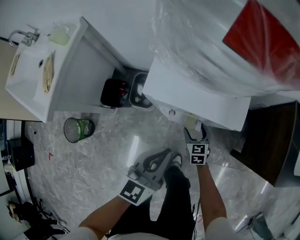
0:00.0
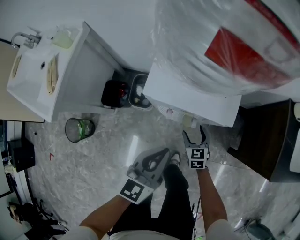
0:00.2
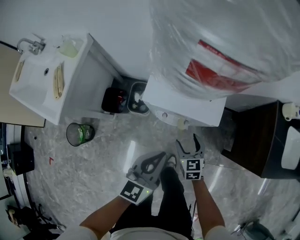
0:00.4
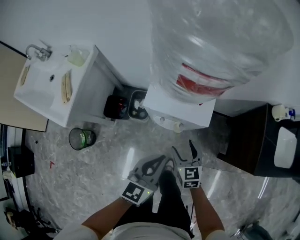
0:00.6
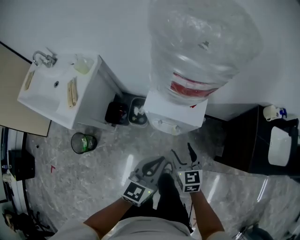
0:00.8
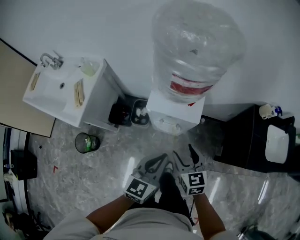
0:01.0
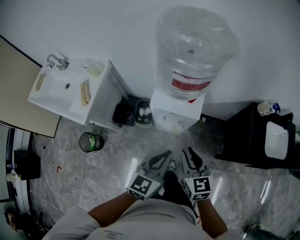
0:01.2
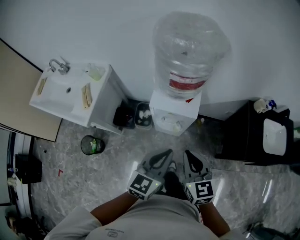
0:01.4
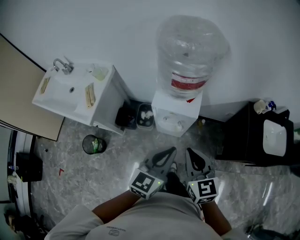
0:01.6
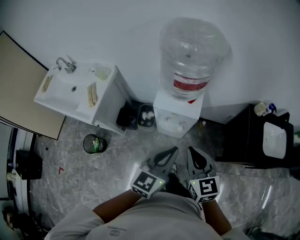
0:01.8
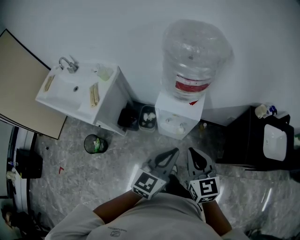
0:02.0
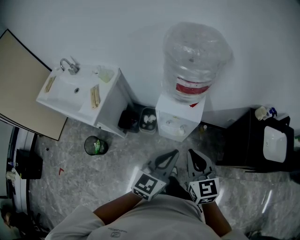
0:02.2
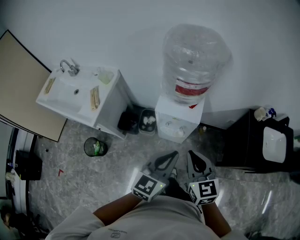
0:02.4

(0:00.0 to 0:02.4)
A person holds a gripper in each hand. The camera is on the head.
0:00.0 - 0:01.2: The right gripper goes approximately 50 cm upward, and closes up. The left gripper shifts approximately 25 cm upward.
0:01.2 - 0:02.4: The grippers both shift upward by roughly 10 cm.

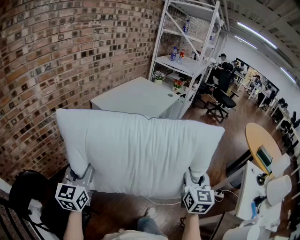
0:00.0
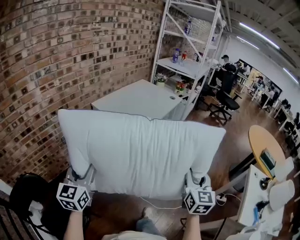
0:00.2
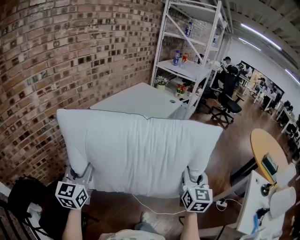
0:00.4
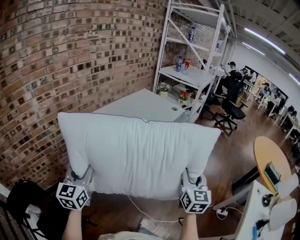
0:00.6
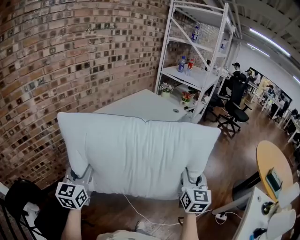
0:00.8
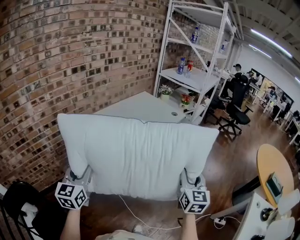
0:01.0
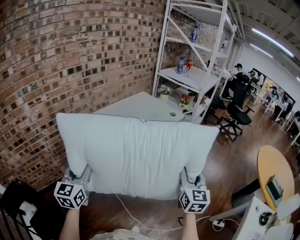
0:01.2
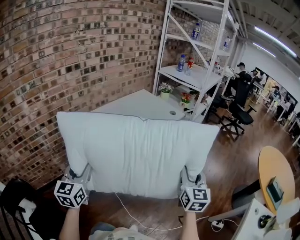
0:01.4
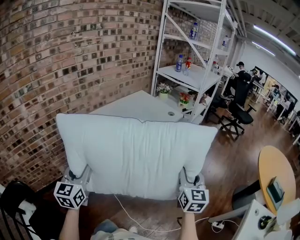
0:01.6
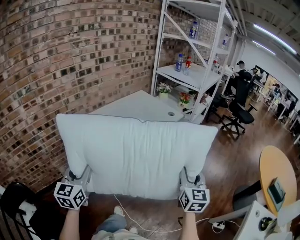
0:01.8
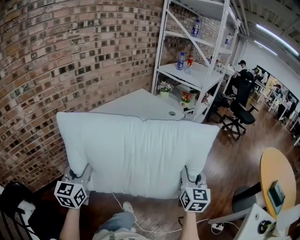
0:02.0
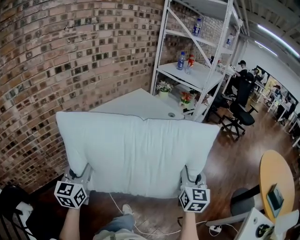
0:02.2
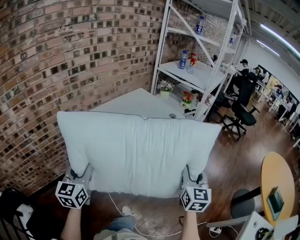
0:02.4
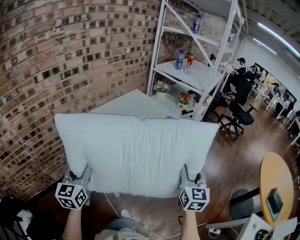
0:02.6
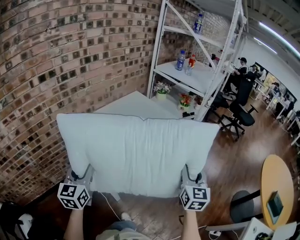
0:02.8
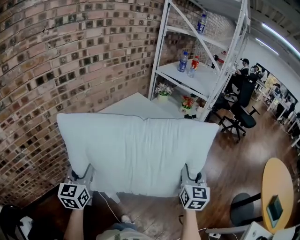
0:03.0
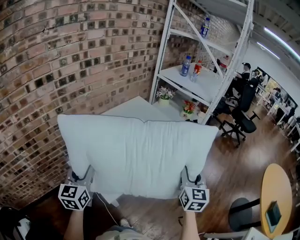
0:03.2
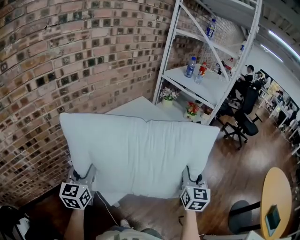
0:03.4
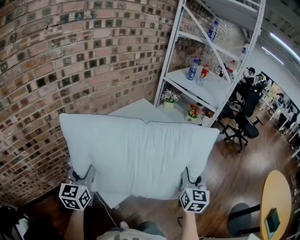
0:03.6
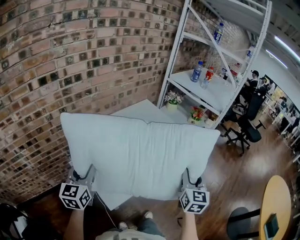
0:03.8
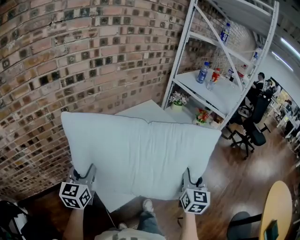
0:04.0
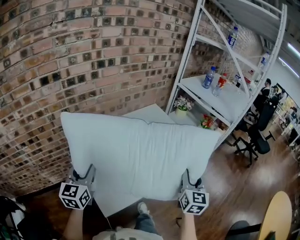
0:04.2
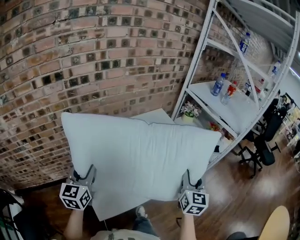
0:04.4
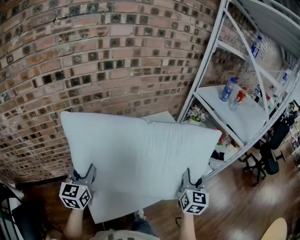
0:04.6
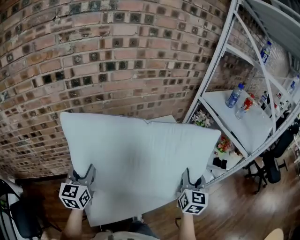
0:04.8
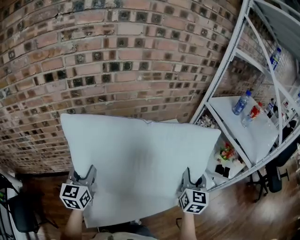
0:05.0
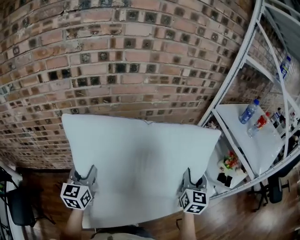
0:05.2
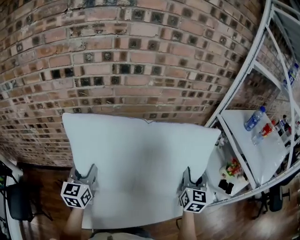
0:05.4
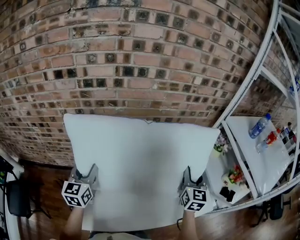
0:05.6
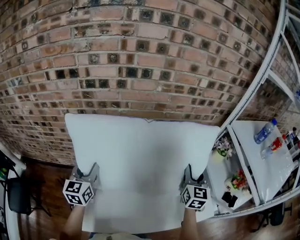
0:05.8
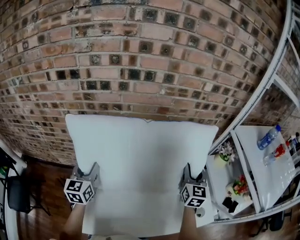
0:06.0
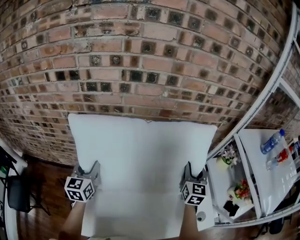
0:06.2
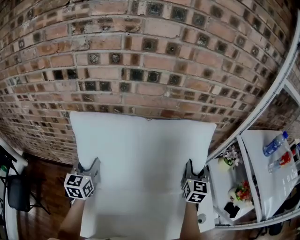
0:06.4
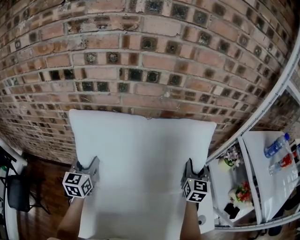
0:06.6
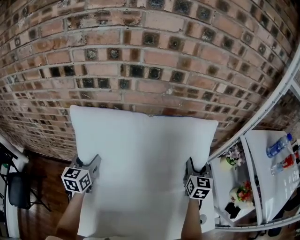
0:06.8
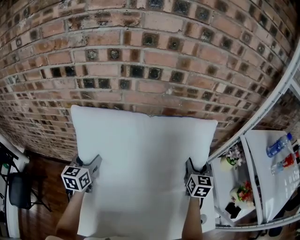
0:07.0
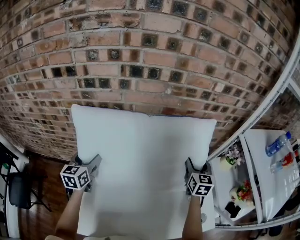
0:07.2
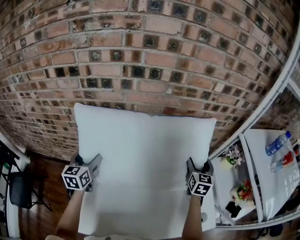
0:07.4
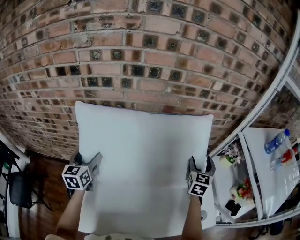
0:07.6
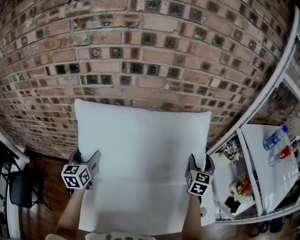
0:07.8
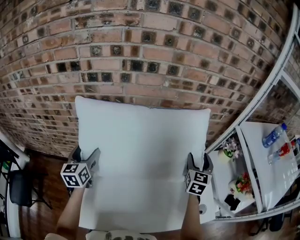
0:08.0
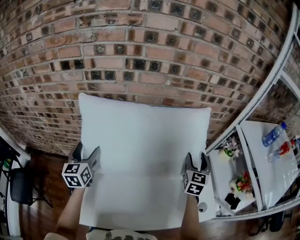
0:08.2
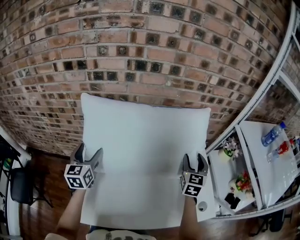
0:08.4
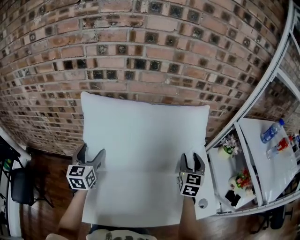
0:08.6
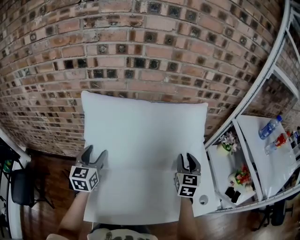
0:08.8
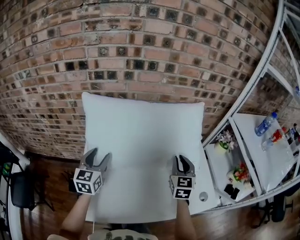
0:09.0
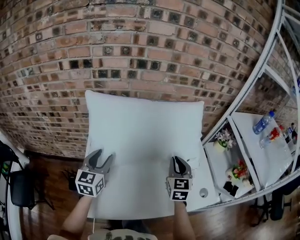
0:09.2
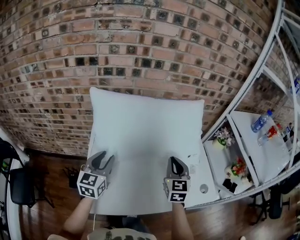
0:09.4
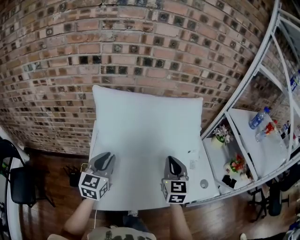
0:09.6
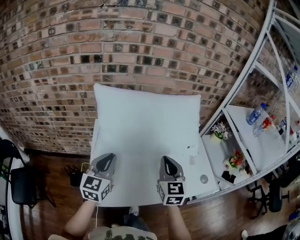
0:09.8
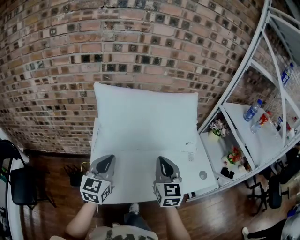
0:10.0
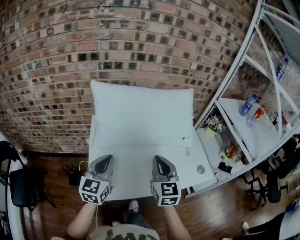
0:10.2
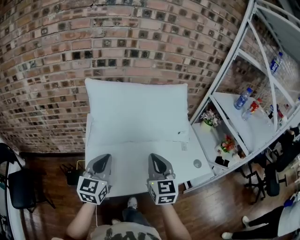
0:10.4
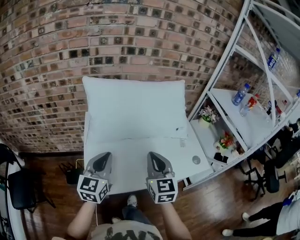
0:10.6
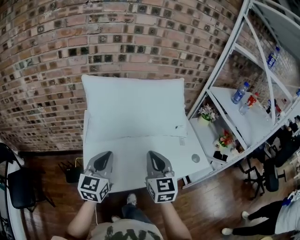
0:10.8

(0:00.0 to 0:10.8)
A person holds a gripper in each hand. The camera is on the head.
0:00.0 - 0:01.6: Both grippers travel together forward and to the right, about 30 cm.
0:01.6 - 0:03.0: Both grippers move forward, roughly 25 cm.
0:03.0 - 0:04.6: The left gripper shifts approximately 15 cm forward. The right gripper moves forward, roughly 30 cm.
0:04.6 - 0:06.2: The right gripper travels forward by about 30 cm, and turns by some 20 degrees; the left gripper travels forward and downward by approximately 15 cm, and rotates some 20 degrees.
0:06.2 - 0:07.8: The left gripper opens up. The right gripper opens up.
0:07.8 - 0:09.2: The right gripper goes approximately 20 cm backward and to the left, and closes, while the left gripper travels backward and to the right by roughly 10 cm, and closes its fingers.
0:09.2 - 0:10.8: The left gripper is displaced backward by approximately 15 cm, and closes; the right gripper goes roughly 20 cm backward and to the left.

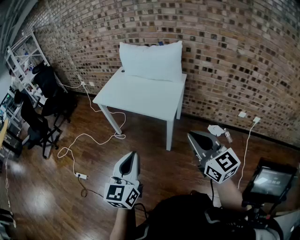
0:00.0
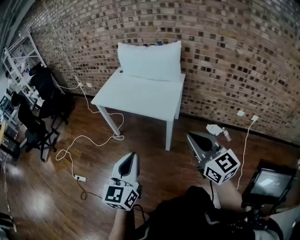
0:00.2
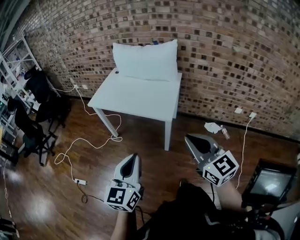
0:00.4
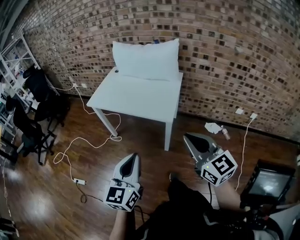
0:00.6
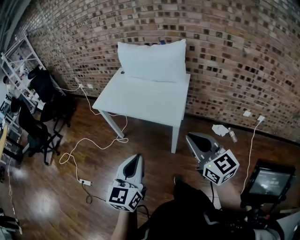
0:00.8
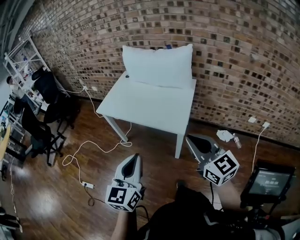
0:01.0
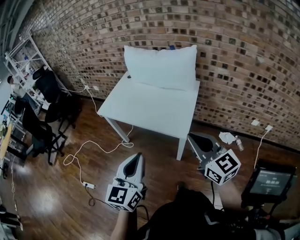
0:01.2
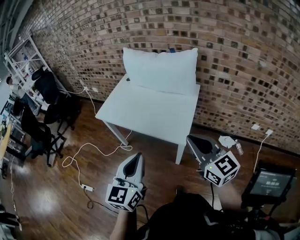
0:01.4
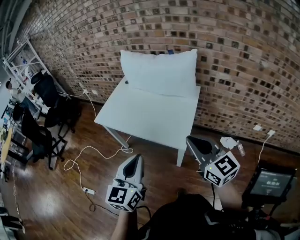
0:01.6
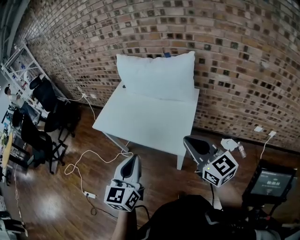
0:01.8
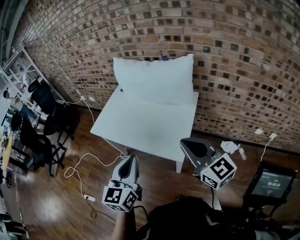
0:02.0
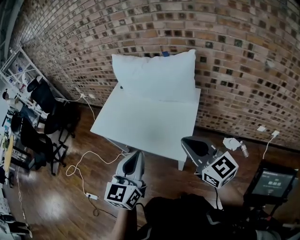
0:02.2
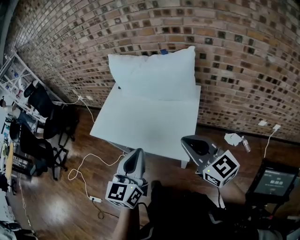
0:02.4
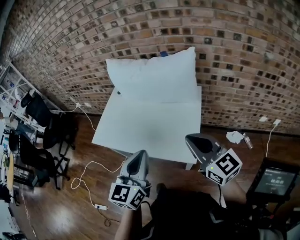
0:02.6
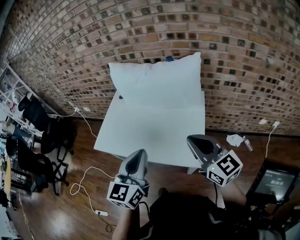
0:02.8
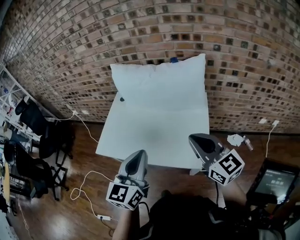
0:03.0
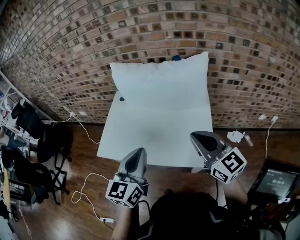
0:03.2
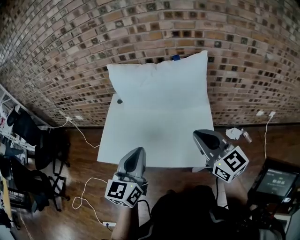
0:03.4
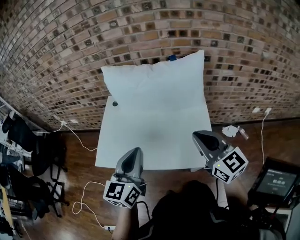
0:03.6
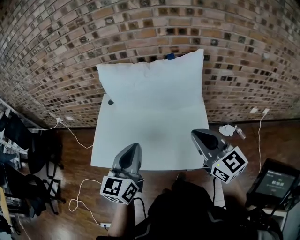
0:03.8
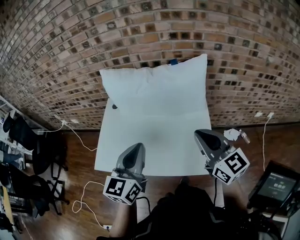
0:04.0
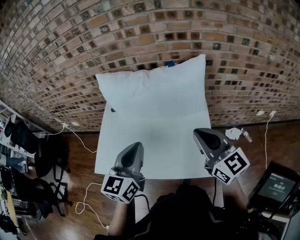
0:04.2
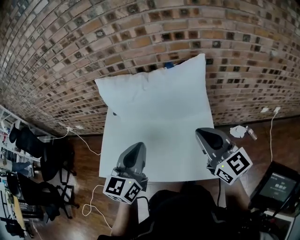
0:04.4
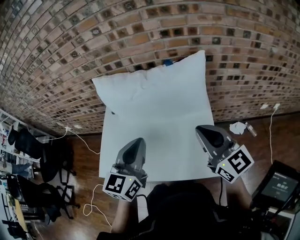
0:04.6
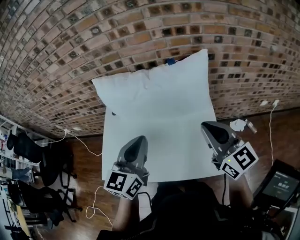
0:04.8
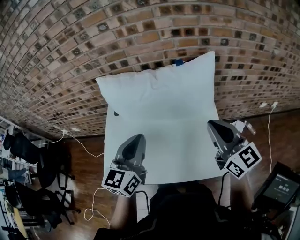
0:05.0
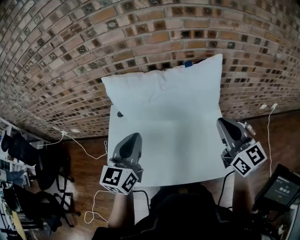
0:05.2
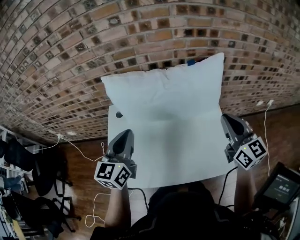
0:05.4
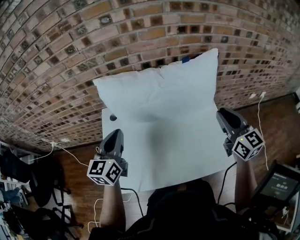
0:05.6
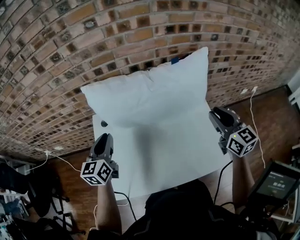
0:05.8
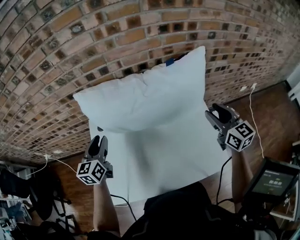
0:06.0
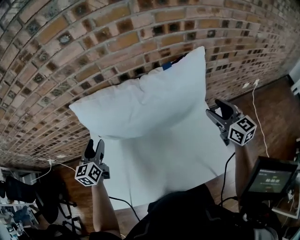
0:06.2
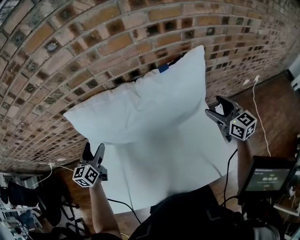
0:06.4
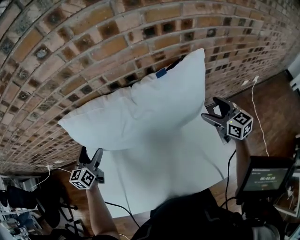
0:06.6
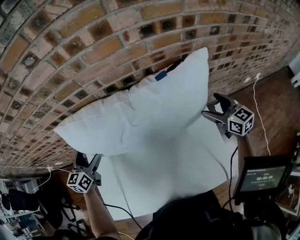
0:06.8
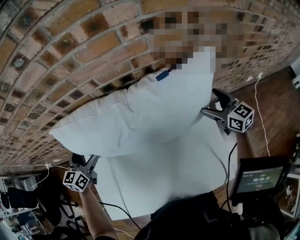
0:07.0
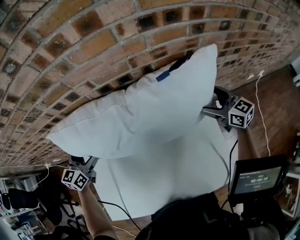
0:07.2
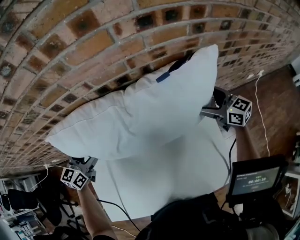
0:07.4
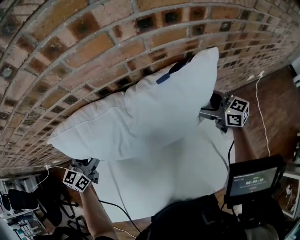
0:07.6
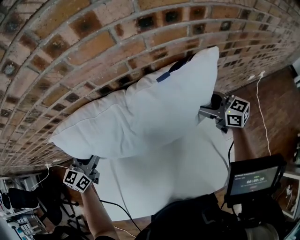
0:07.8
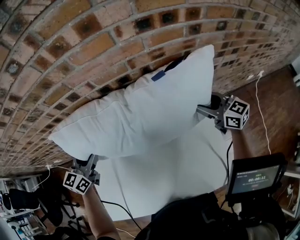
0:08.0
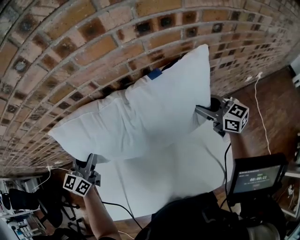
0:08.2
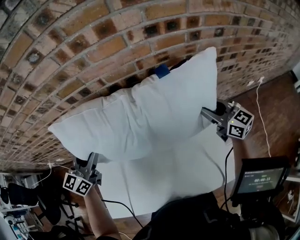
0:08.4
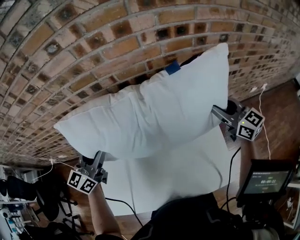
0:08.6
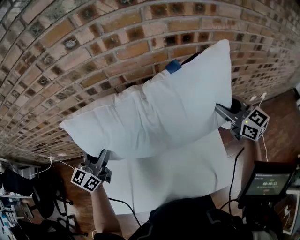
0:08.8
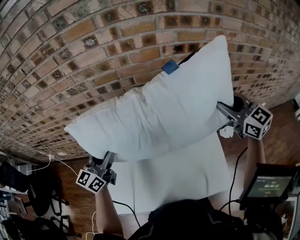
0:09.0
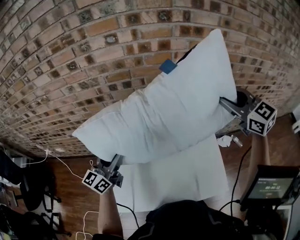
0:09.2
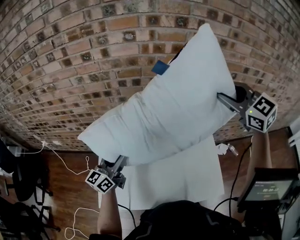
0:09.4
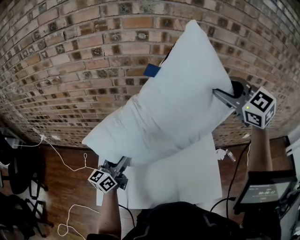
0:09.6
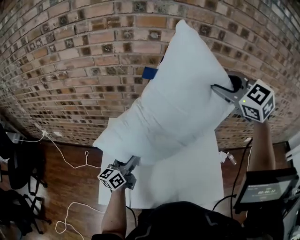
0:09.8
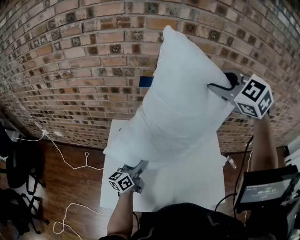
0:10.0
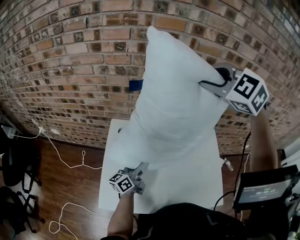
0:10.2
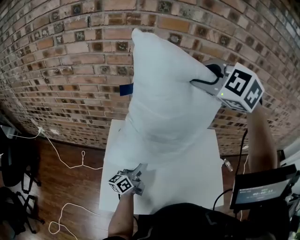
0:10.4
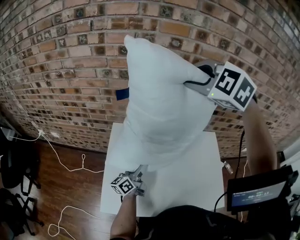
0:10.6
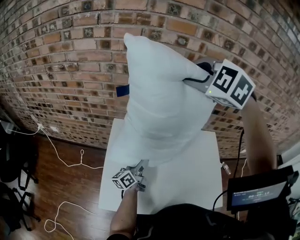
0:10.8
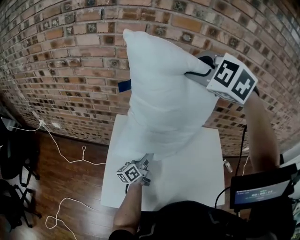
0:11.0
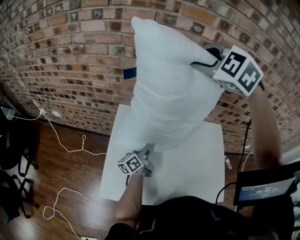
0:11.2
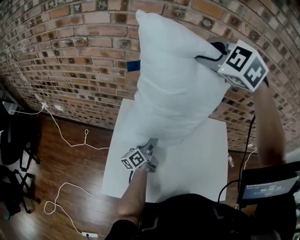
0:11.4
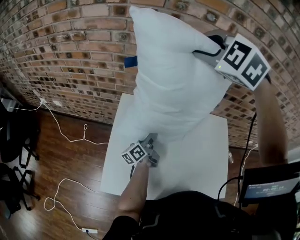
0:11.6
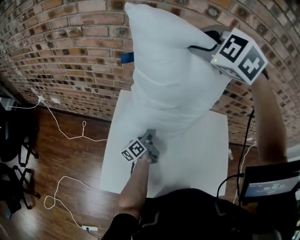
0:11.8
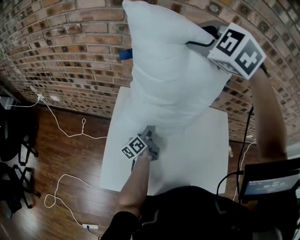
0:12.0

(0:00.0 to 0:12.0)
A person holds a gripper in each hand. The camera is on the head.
0:00.0 - 0:01.6: The two grippers go about 25 cm forward.
0:01.6 - 0:03.0: The two grippers go some 20 cm forward.
0:03.0 - 0:04.4: Both grippers travel together forward, about 15 cm.
0:04.4 - 0:06.0: The right gripper shifts roughly 15 cm forward and downward, changes its angle by some 30 degrees, and opens. Meanwhile the left gripper shifts roughly 35 cm to the left, forward and downward.
0:06.0 - 0:07.6: The right gripper heads forward and downward, covering approximately 20 cm, swivels approximately 30 degrees, and opens up. Meanwhile the left gripper goes some 15 cm forward and downward, and opens up.
0:07.6 - 0:09.0: The left gripper shifts about 15 cm backward and upward, changes its angle by about 20 degrees, and closes up. Meanwhile the right gripper travels upward by some 25 cm, swivels roughly 30 degrees, and closes up.
0:09.0 - 0:10.4: The right gripper is displaced to the left by some 35 cm, and rotates around the line of its fingers by roughly 50 degrees, counterclockwise from behind. The left gripper moves downward, some 15 cm, and swivels some 40 degrees.
0:10.4 - 0:12.0: The right gripper shifts some 10 cm to the left, forward and downward. Meanwhile the left gripper shifts approximately 10 cm downward and forward, and rotates approximately 30 degrees.
